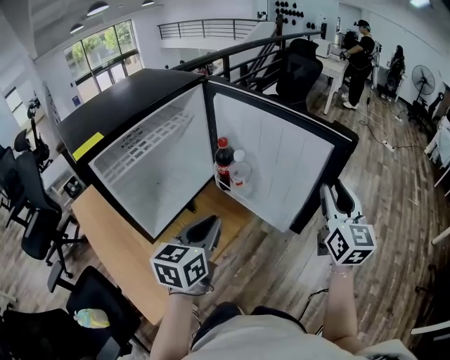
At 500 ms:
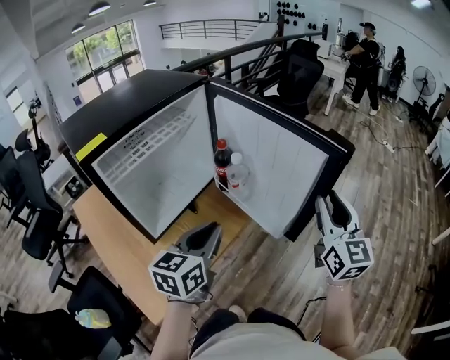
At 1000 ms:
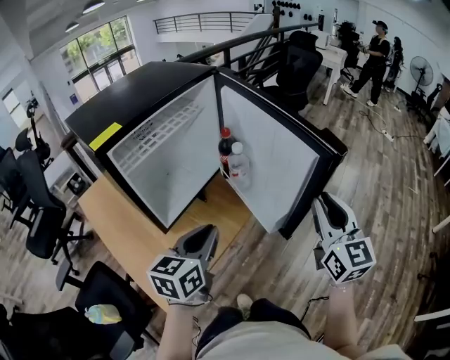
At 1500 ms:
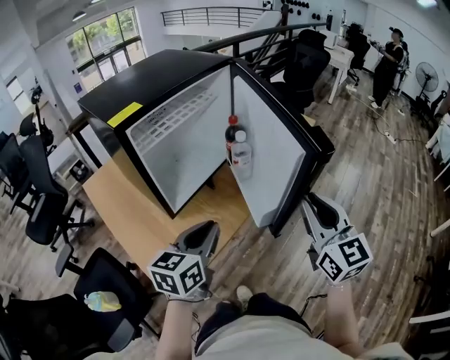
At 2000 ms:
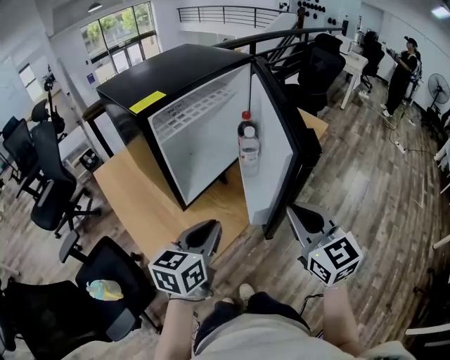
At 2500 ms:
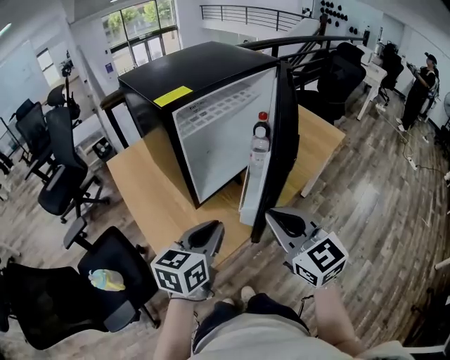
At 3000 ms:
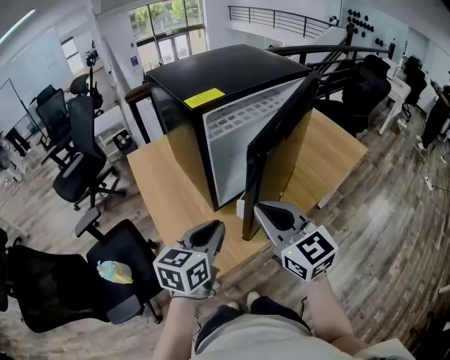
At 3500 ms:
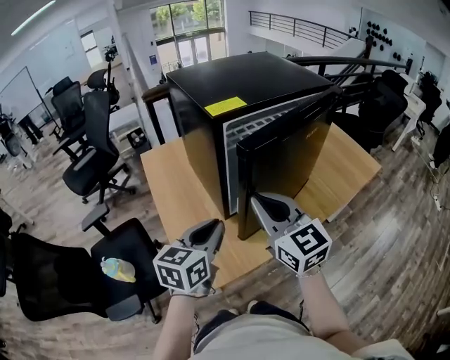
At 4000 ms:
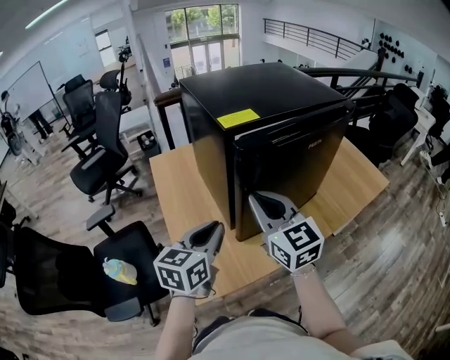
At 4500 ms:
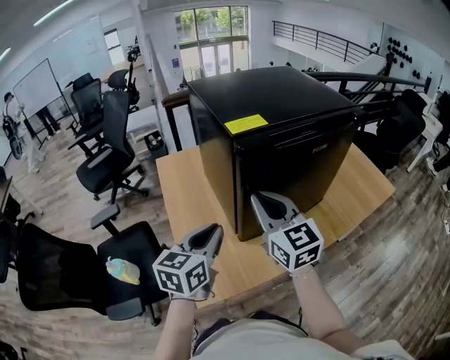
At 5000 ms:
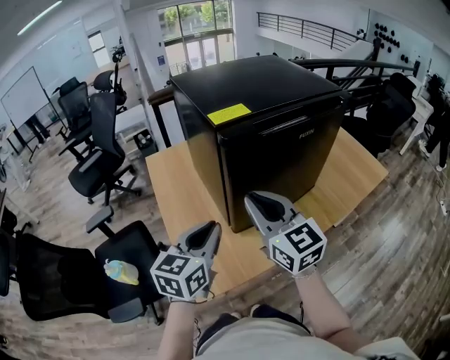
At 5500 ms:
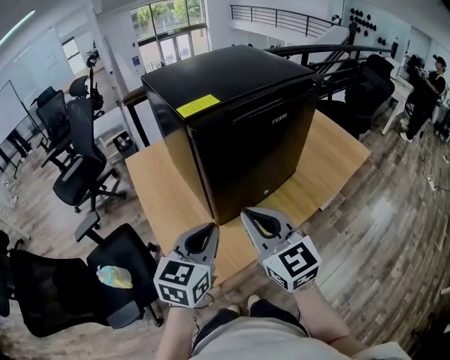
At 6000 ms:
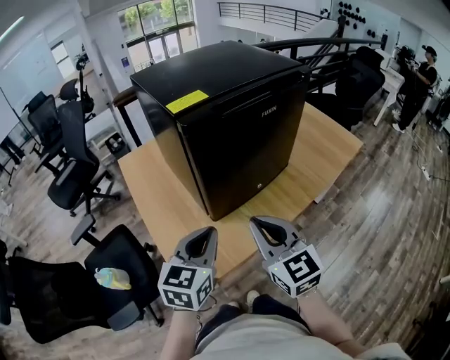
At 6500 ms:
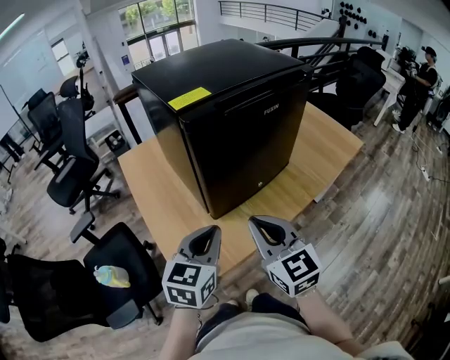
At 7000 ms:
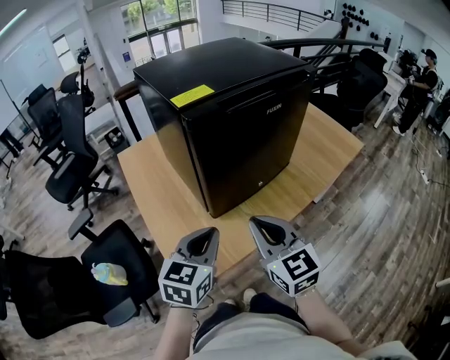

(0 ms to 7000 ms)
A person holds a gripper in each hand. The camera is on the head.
0 ms - 2000 ms: The right gripper moves to the left and backward, approximately 30 cm, rotates some 30 degrees, and closes up, while the left gripper is displaced backward and to the left by roughly 15 cm.
2000 ms - 3500 ms: The right gripper is displaced to the left and forward by approximately 25 cm, and turns by approximately 30 degrees, while the left gripper shifts approximately 15 cm to the left and forward.
5000 ms - 7000 ms: The left gripper ends up some 10 cm from where it was; the right gripper moves backward, downward and to the right, about 10 cm.

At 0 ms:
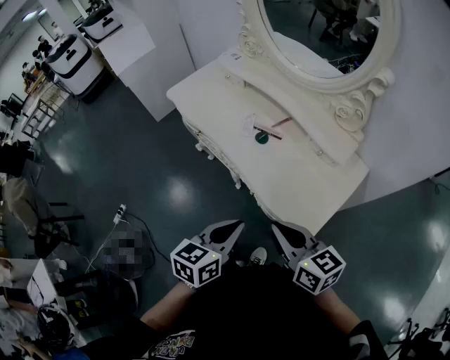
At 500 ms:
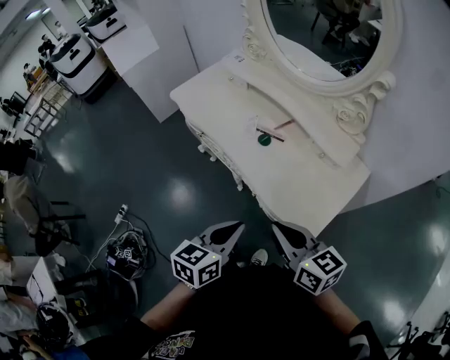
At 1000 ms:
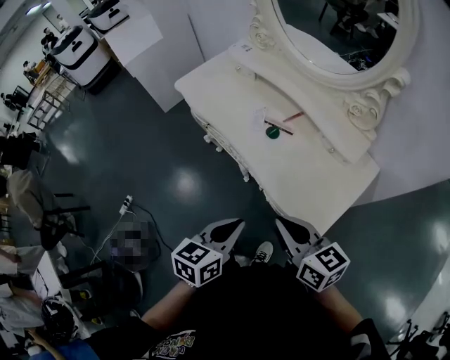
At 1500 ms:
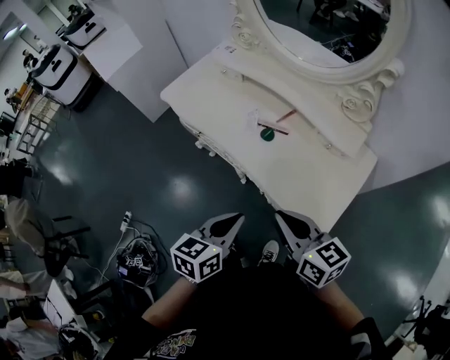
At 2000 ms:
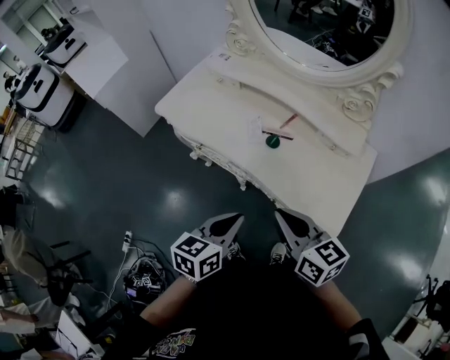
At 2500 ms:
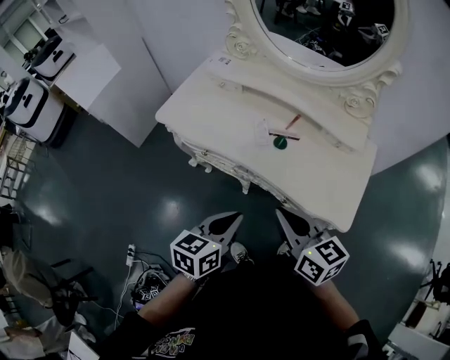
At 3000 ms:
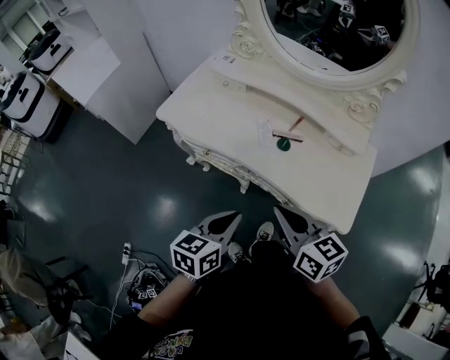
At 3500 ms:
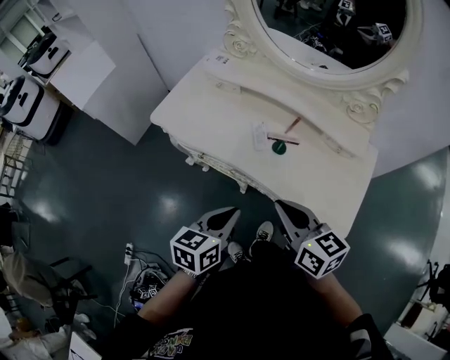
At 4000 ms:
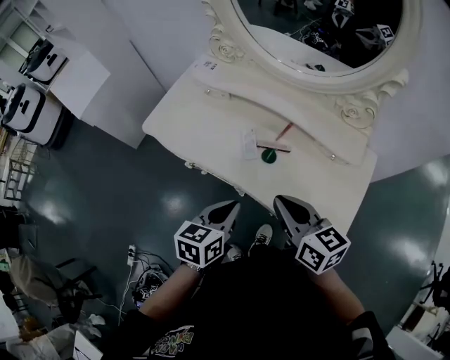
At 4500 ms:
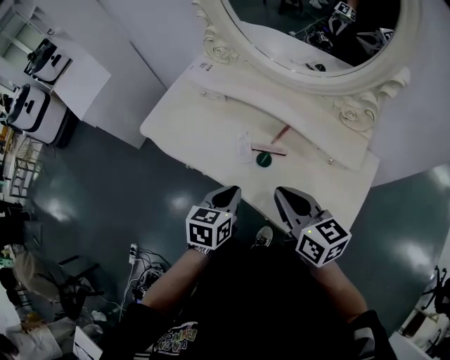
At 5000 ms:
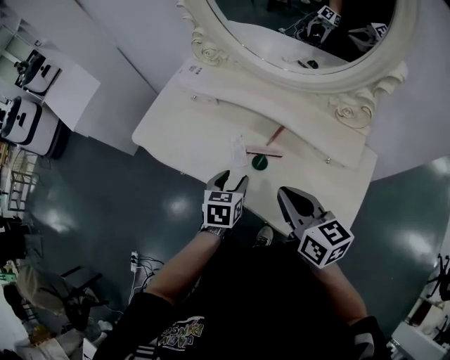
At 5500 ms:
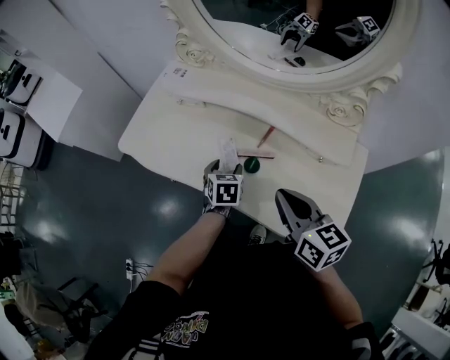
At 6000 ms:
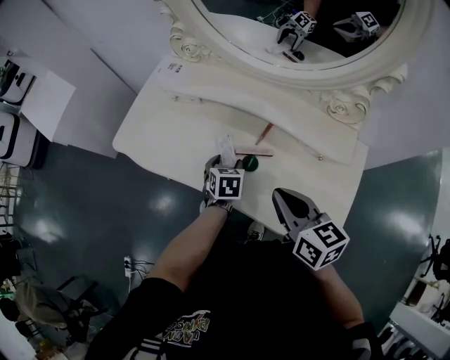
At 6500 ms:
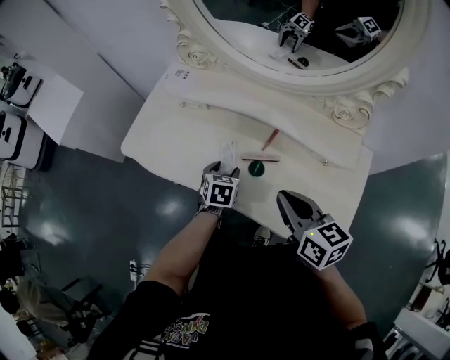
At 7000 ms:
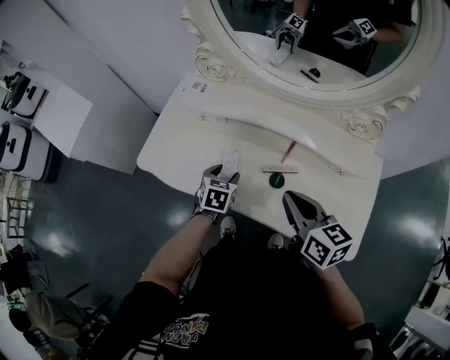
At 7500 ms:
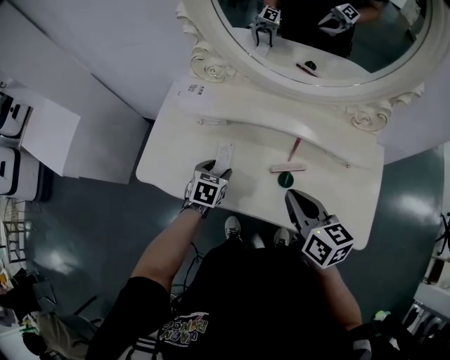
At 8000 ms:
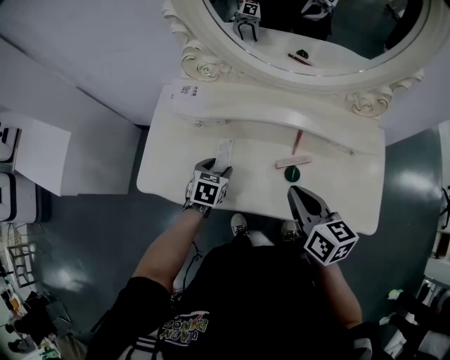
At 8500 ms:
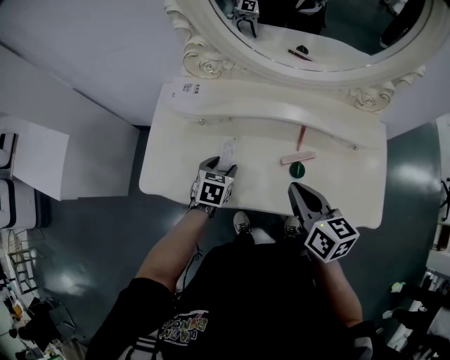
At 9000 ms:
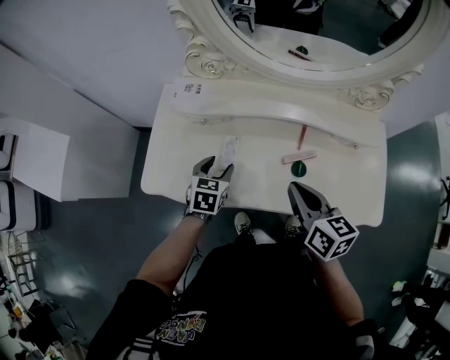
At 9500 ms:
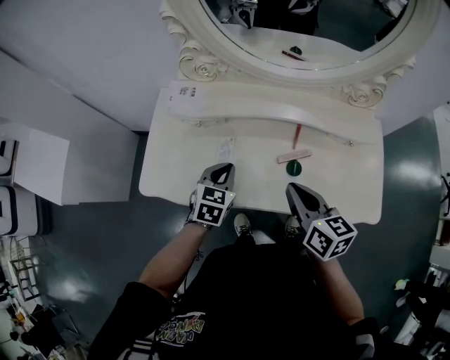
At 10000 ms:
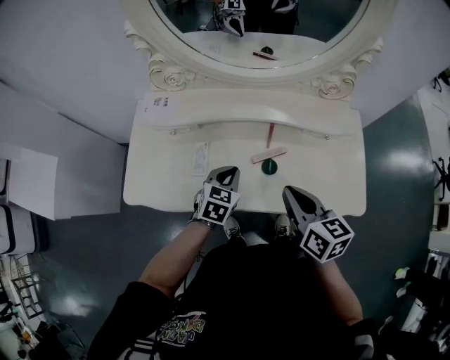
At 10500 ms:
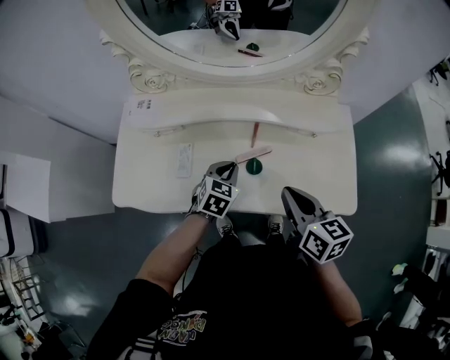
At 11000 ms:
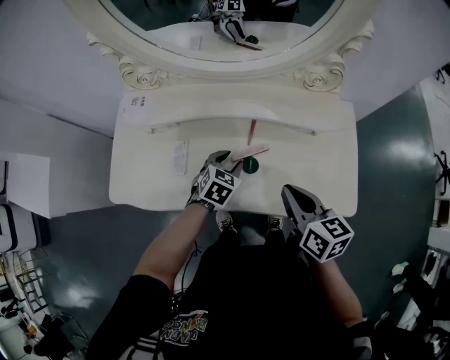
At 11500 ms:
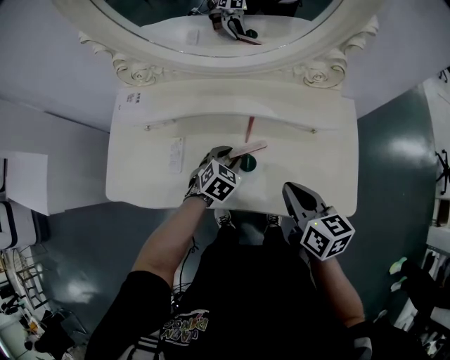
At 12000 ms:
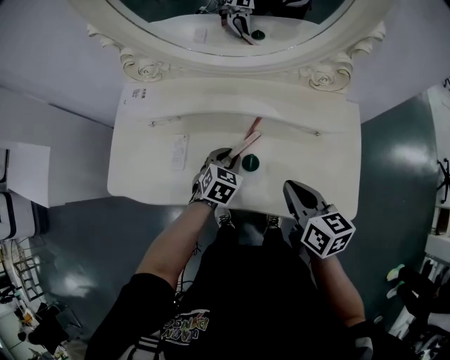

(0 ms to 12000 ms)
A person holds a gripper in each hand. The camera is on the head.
0 ms - 2000 ms: Both grippers move to the left and forward, approximately 15 cm.
2000 ms - 4000 ms: The grippers both shift forward by approximately 10 cm.
4000 ms - 6000 ms: The right gripper shifts approximately 10 cm forward and to the right. Meanwhile the left gripper heads forward and downward, covering some 25 cm, turns by some 30 degrees, and opens up.
6000 ms - 8000 ms: The grippers both shift to the left and forward by about 15 cm. The left gripper rotates some 30 degrees, while the right gripper rotates some 20 degrees.
8000 ms - 10000 ms: The right gripper goes about 5 cm to the right. Meanwhile the left gripper is displaced to the right and upward by roughly 15 cm, and closes.
10000 ms - 12000 ms: The left gripper shifts about 10 cm to the right and downward, and opens its fingers. The right gripper shifts about 10 cm to the right.

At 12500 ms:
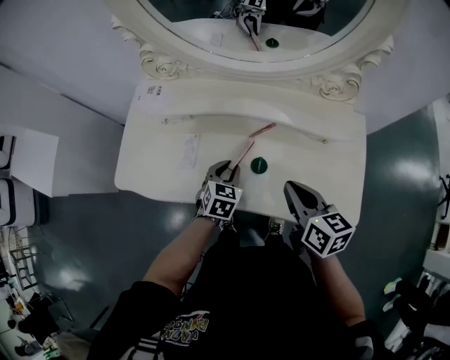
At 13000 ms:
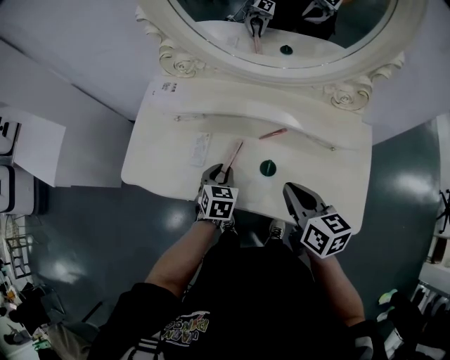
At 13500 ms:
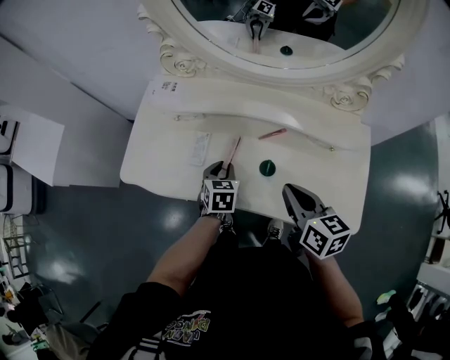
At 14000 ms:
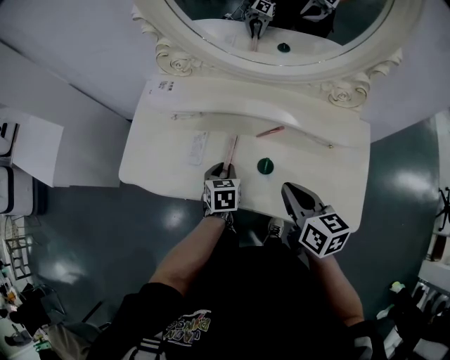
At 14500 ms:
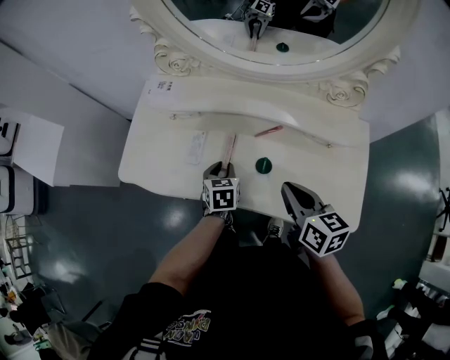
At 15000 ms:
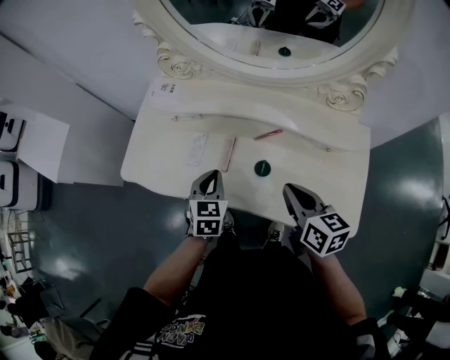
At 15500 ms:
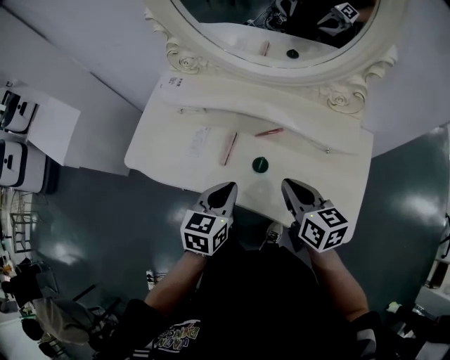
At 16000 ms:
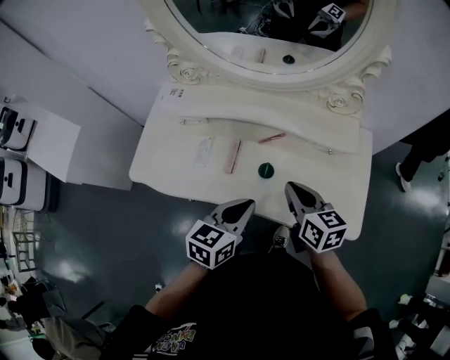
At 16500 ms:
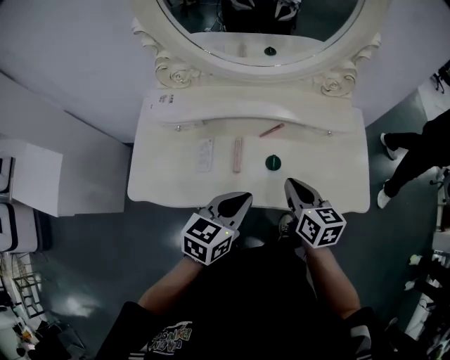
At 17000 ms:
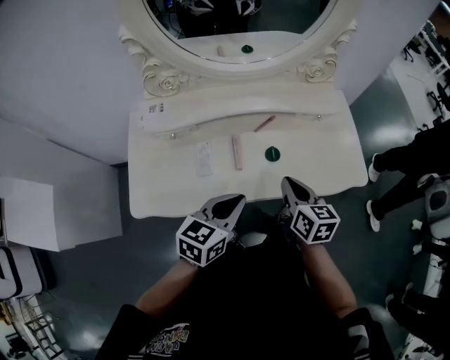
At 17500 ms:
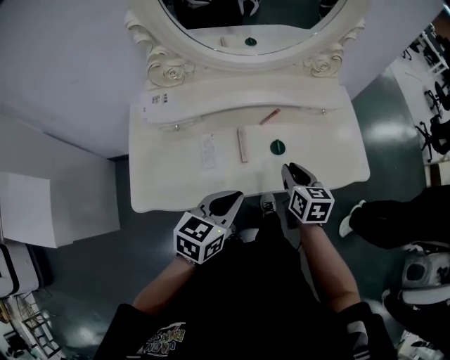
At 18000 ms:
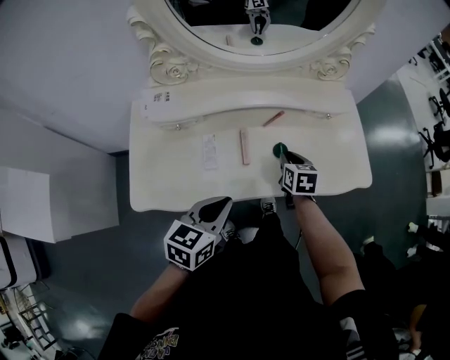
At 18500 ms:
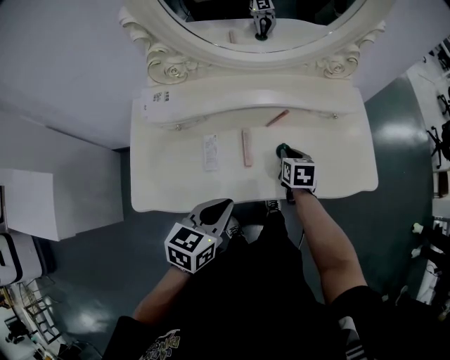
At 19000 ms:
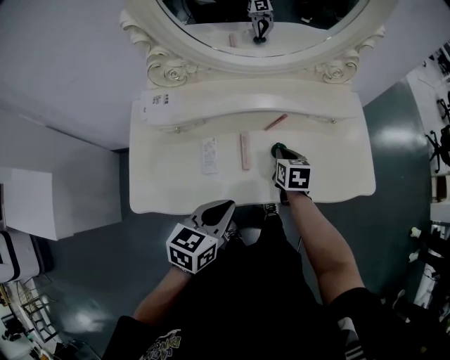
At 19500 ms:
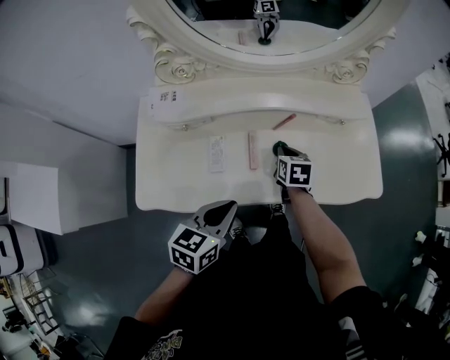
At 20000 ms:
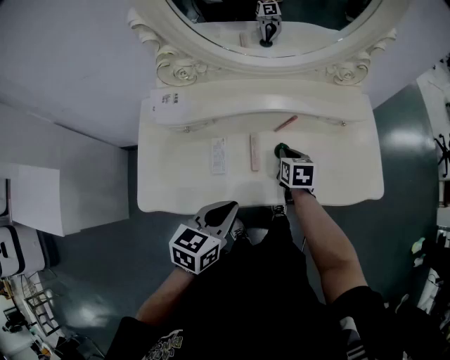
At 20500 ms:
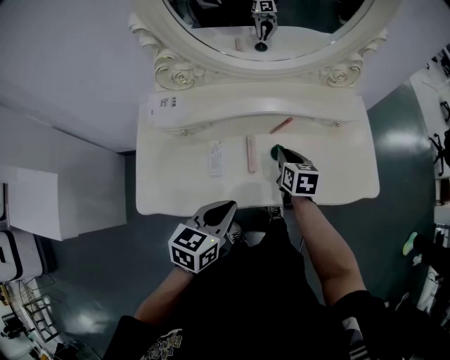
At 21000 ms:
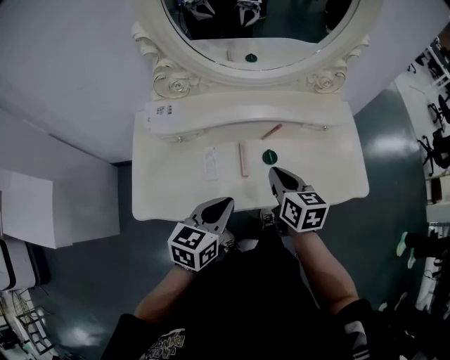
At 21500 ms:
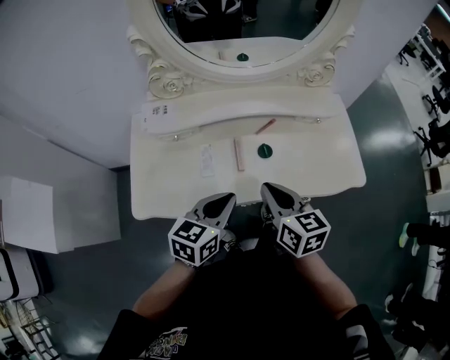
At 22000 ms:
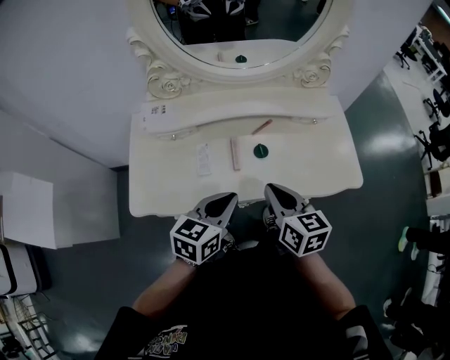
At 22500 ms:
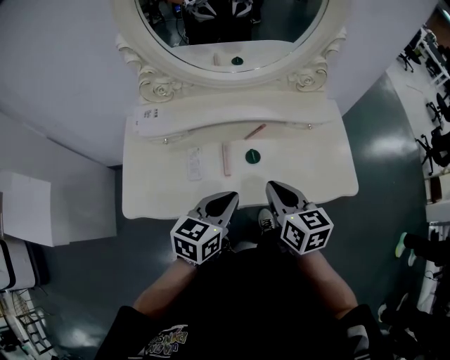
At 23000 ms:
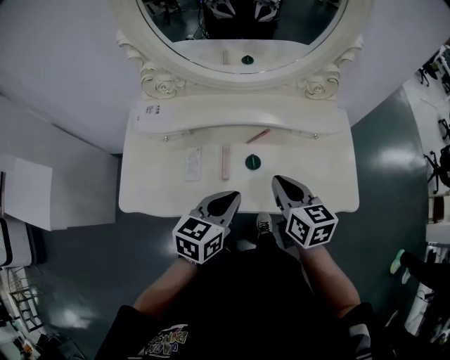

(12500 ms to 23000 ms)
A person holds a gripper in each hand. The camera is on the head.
12500 ms - 14500 ms: The left gripper swivels approximately 30 degrees.
14500 ms - 16500 ms: The left gripper moves upward, about 15 cm, and swivels some 40 degrees.
16500 ms - 19000 ms: The right gripper is displaced downward, forward and to the left by roughly 15 cm, and swivels about 30 degrees. Meanwhile the left gripper travels to the left by about 10 cm.
19000 ms - 21000 ms: The right gripper heads upward and backward, covering about 15 cm, and changes its angle by about 20 degrees.
21000 ms - 23000 ms: The two grippers go some 10 cm to the right.
